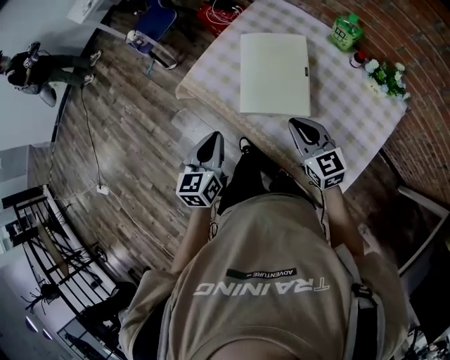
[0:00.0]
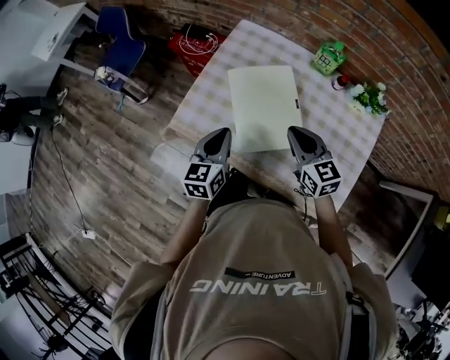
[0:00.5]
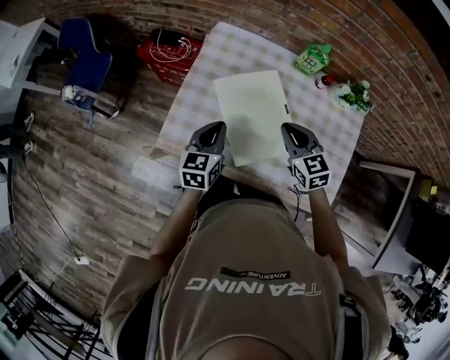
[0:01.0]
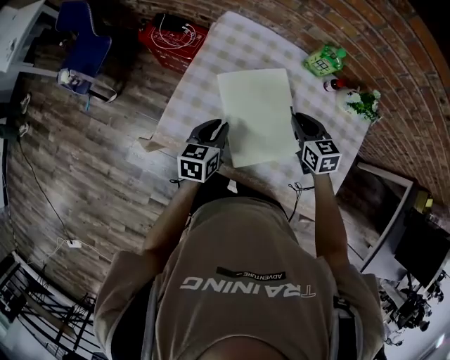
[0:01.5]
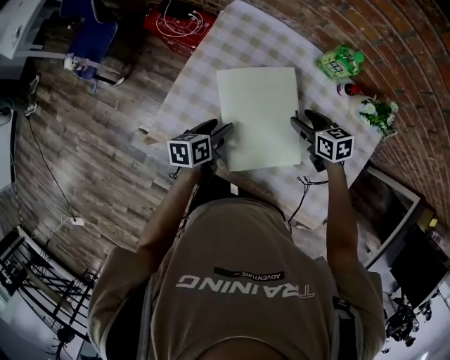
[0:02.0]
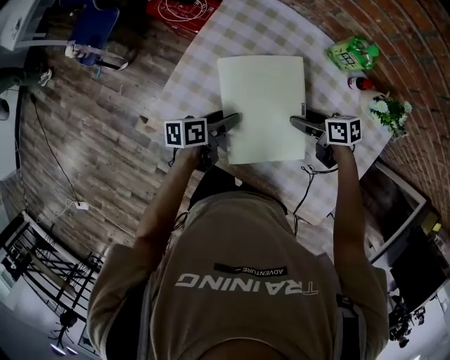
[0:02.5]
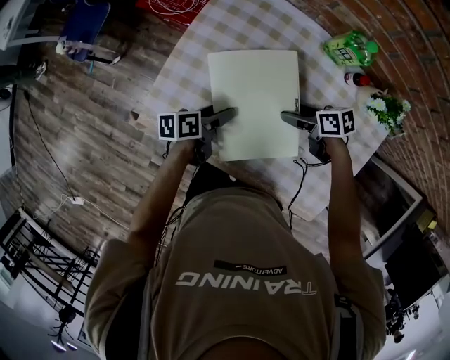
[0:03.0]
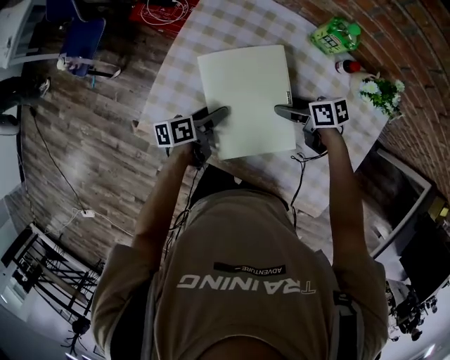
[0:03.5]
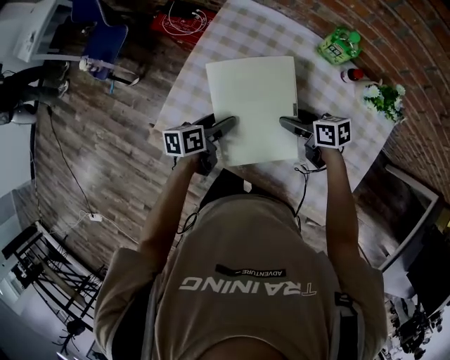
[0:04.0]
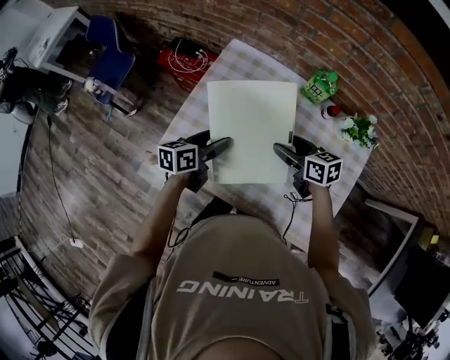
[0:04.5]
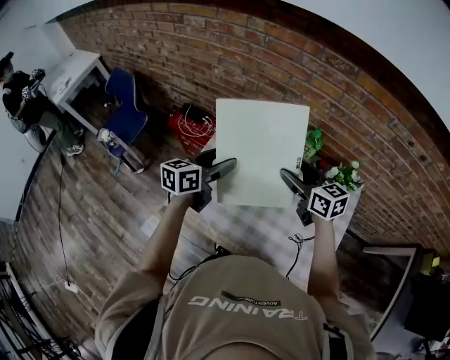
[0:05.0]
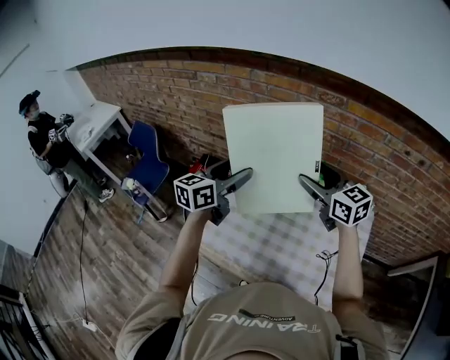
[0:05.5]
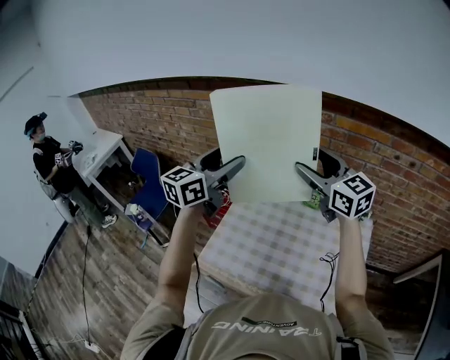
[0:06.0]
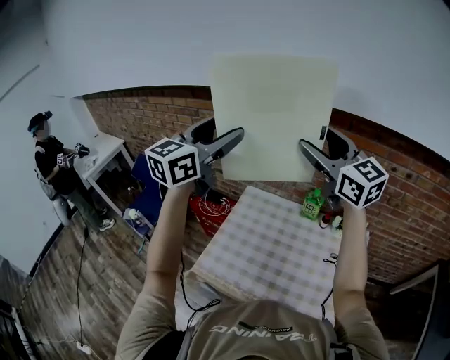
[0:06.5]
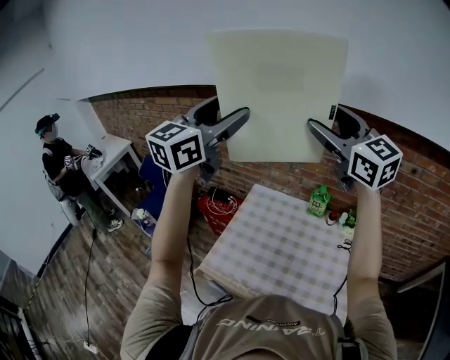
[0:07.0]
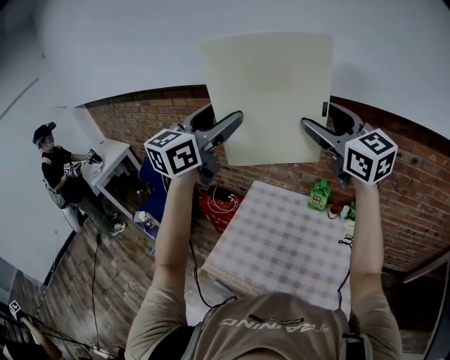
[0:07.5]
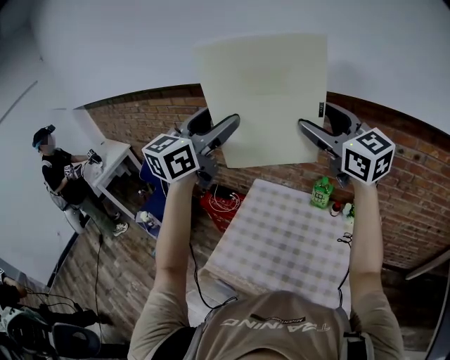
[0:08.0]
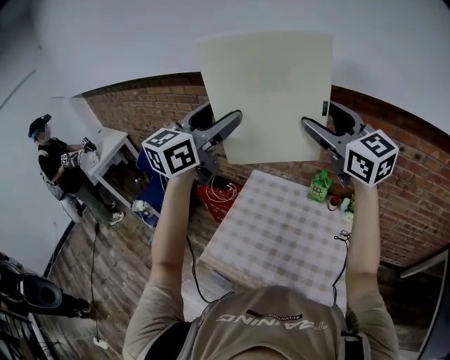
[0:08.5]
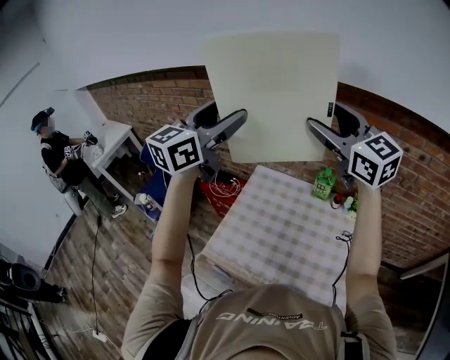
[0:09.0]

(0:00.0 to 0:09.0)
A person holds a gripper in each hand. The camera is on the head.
0:00.0 - 0:02.0: The right gripper ends up approximately 25 cm from where it was, turns by some 40 degrees, and opens its fingers, while the left gripper shifts by roughly 30 cm, changes its angle by some 50 degrees, and opens up.
0:02.0 - 0:04.5: The two grippers go approximately 10 cm upward.
0:04.5 - 0:07.0: Both grippers move upward, approximately 60 cm. The left gripper rolls clockwise, seen from behind, by some 50 degrees, while the right gripper points its fingers approximately 40 degrees further upward.
0:07.0 - 0:09.0: The two grippers go approximately 5 cm downward.

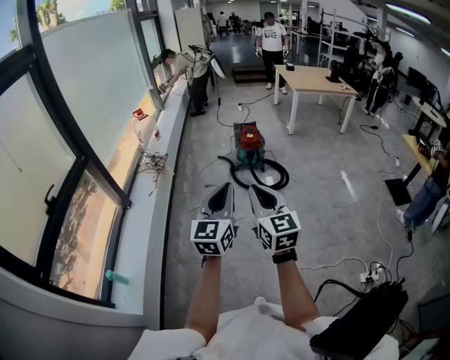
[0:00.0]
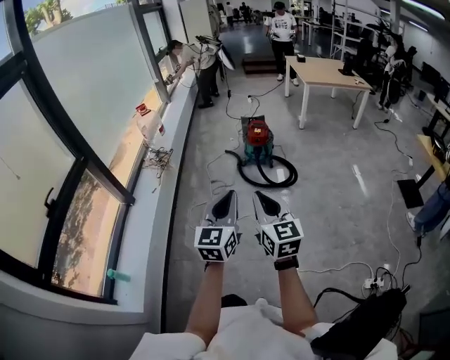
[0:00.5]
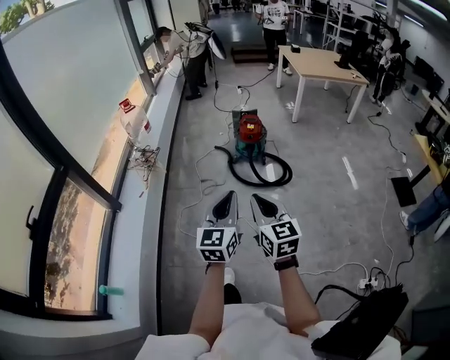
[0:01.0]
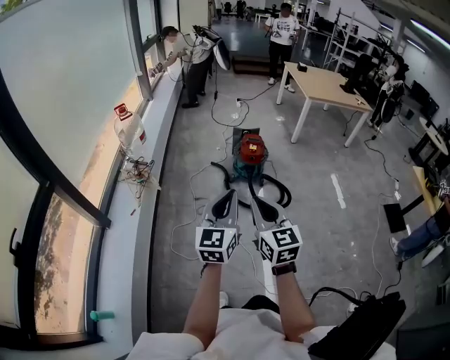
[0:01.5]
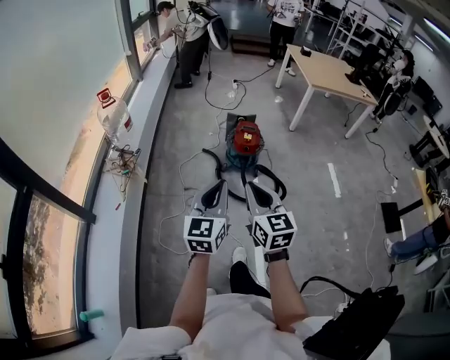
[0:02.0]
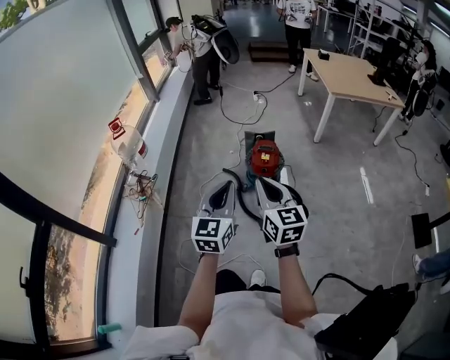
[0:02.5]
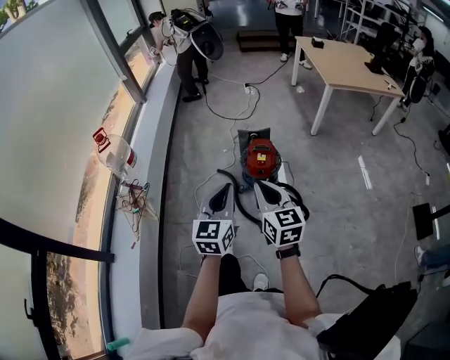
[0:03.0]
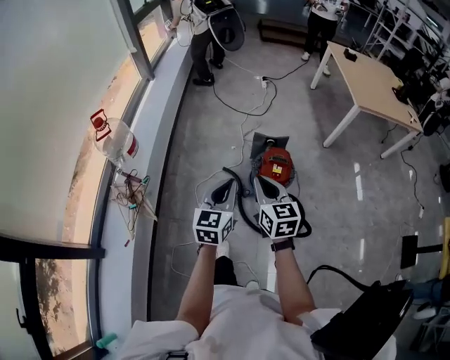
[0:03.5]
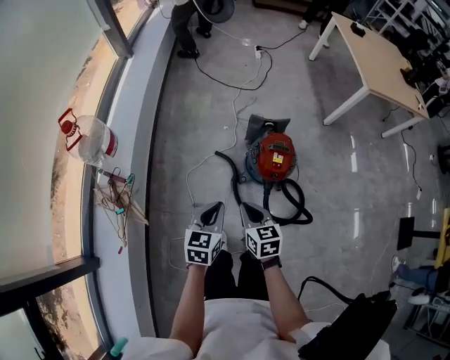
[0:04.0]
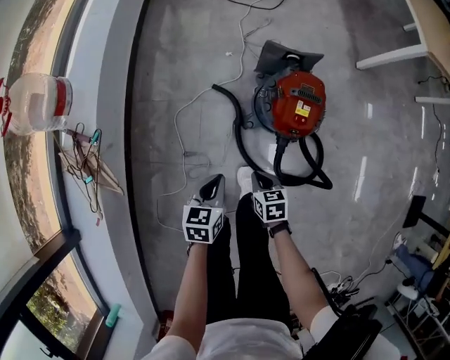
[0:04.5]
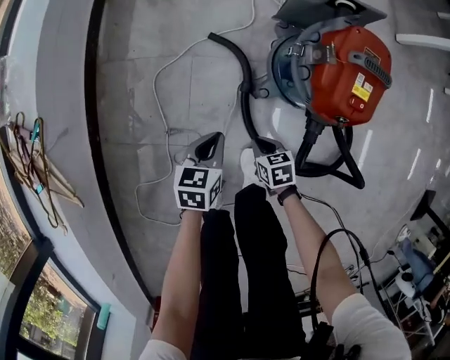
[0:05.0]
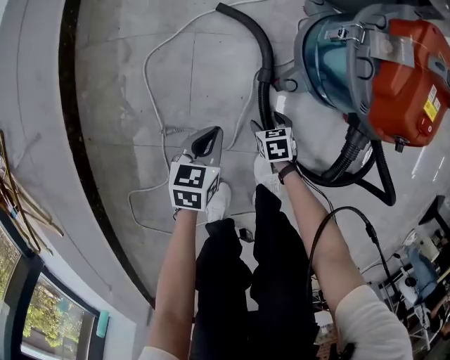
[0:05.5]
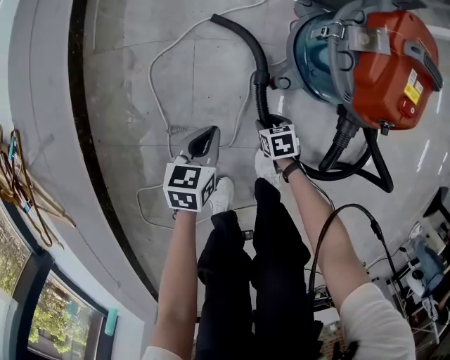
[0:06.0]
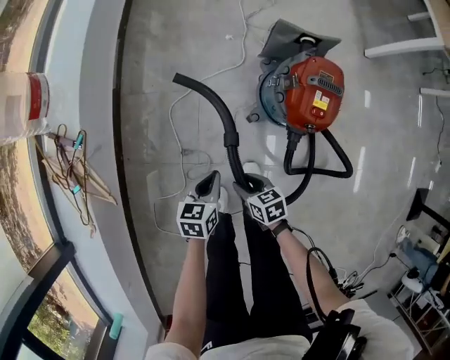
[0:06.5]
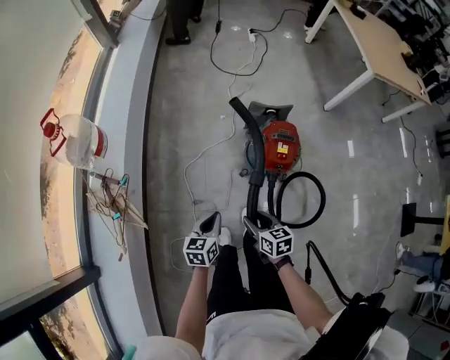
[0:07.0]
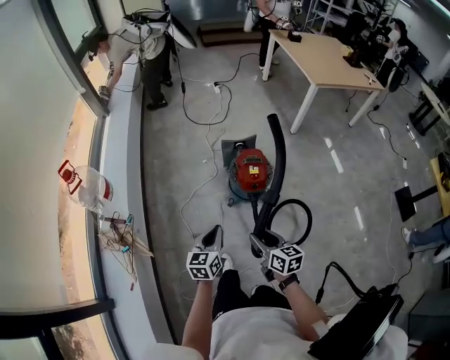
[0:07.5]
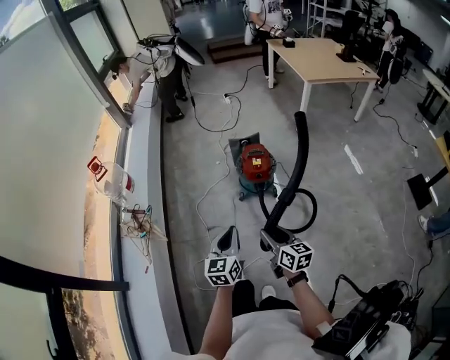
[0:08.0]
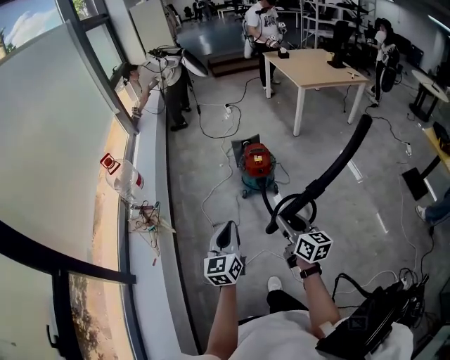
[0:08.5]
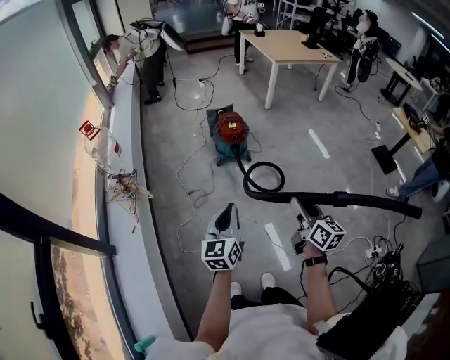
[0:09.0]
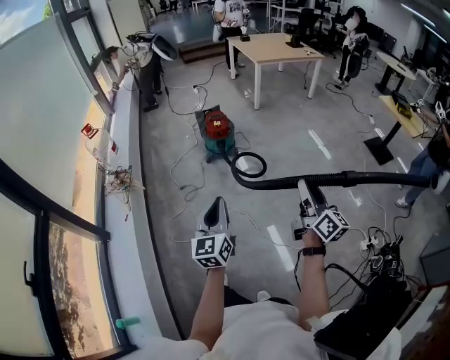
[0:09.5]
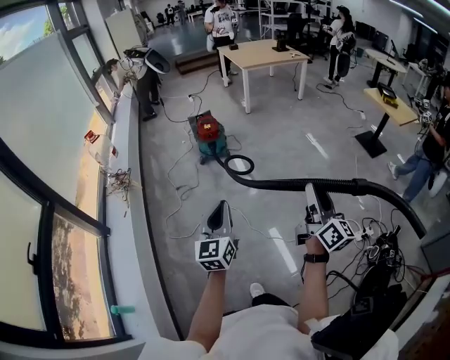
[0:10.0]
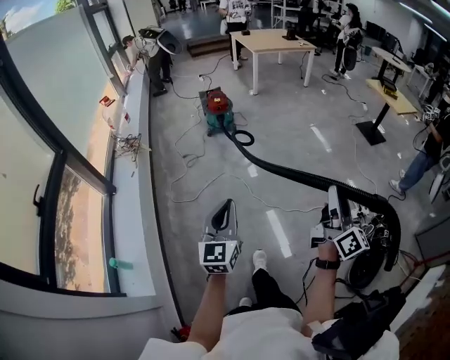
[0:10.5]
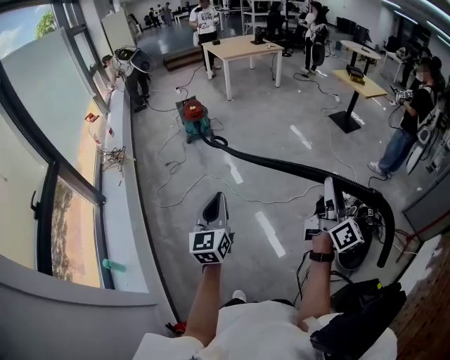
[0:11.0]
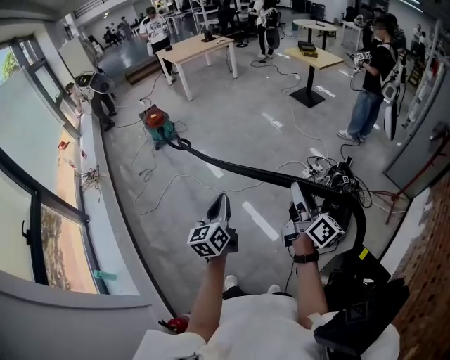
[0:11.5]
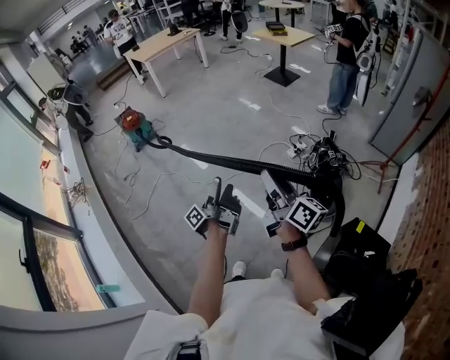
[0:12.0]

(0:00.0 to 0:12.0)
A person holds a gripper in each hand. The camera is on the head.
0:00.0 - 0:02.0: The pair of grippers is taken forward, approximately 50 cm.
0:02.0 - 0:04.0: Both grippers are carried forward, approximately 50 cm. The two grippers go approximately 25 cm downward. The left gripper rotates about 30 degrees, while the right gripper changes its angle by some 30 degrees.
0:04.0 - 0:06.0: Both grippers move downward, roughly 70 cm. The right gripper tips its fingers downward by approximately 40 degrees, and opens its fingers. Meanwhile the left gripper changes its angle by roughly 20 degrees.
0:06.0 - 0:08.0: Both grippers are carried backward, approximately 40 cm. The grippers both shift upward by some 80 cm. The left gripper tilts its fingers some 30 degrees upward. The right gripper points its fingers roughly 60 degrees further upward.
0:08.0 - 0:10.0: The pair of grippers is taken backward and to the right, roughly 70 cm. The right gripper angles its fingers upward, by some 30 degrees.
0:10.0 - 0:12.0: Both grippers are carried backward and to the right, about 50 cm. The left gripper rotates around the line of its fingers by some 90 degrees, counterclockwise from behind, and opens up.

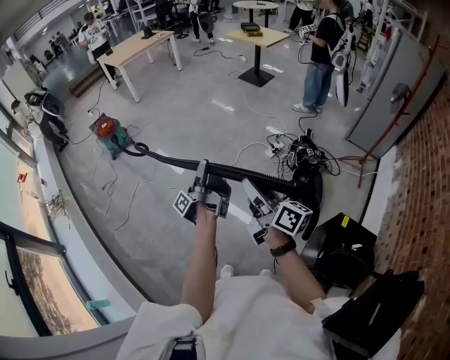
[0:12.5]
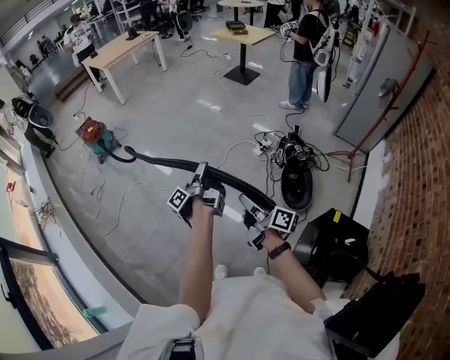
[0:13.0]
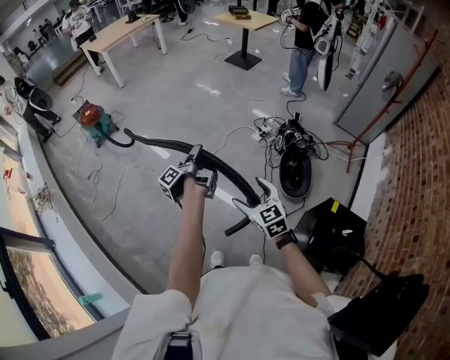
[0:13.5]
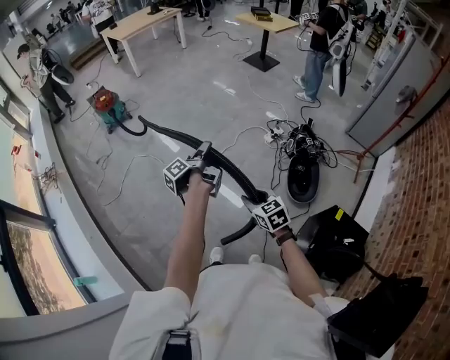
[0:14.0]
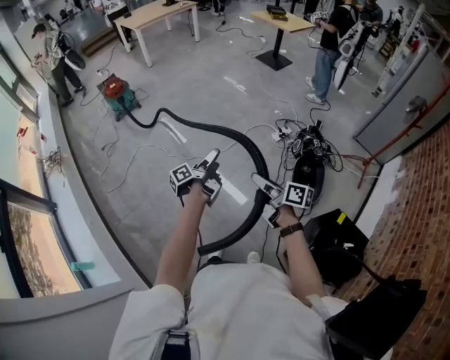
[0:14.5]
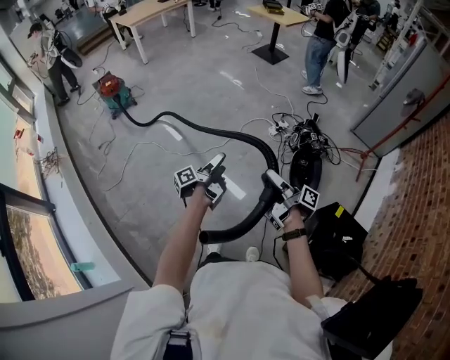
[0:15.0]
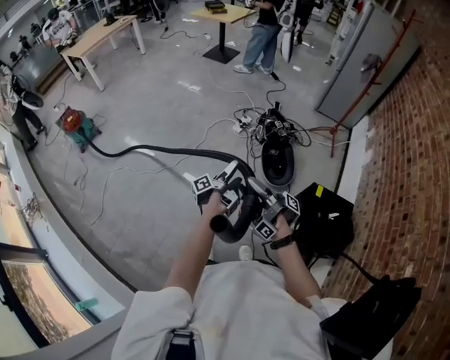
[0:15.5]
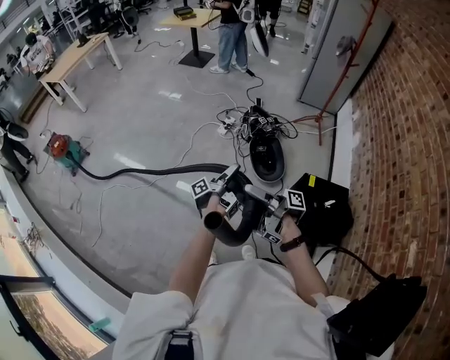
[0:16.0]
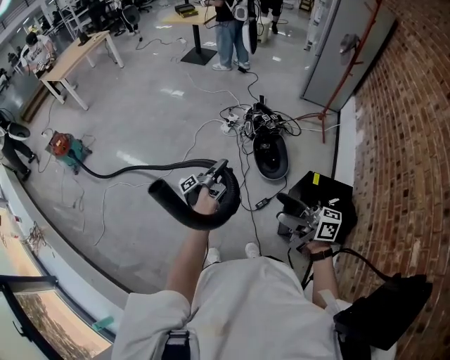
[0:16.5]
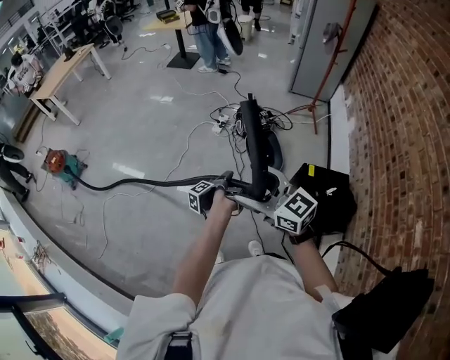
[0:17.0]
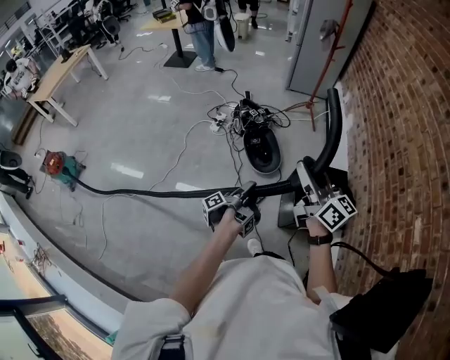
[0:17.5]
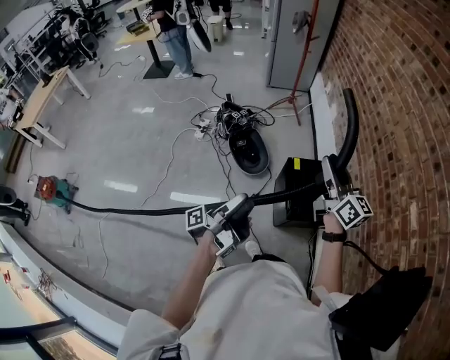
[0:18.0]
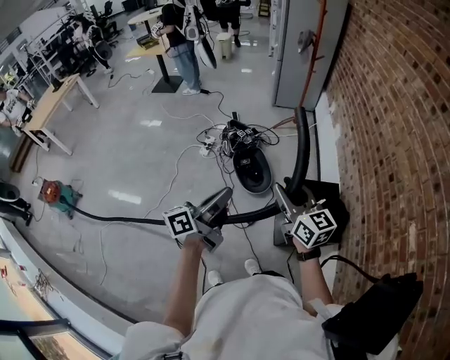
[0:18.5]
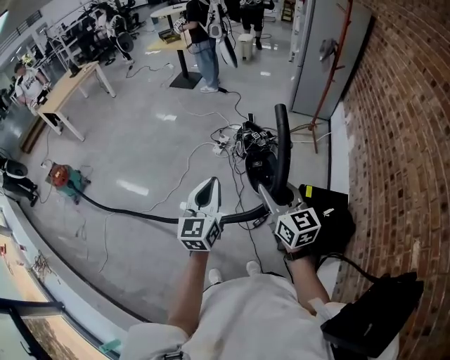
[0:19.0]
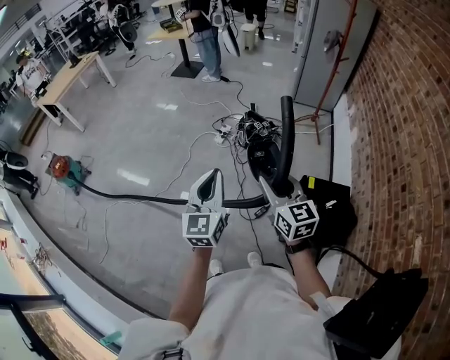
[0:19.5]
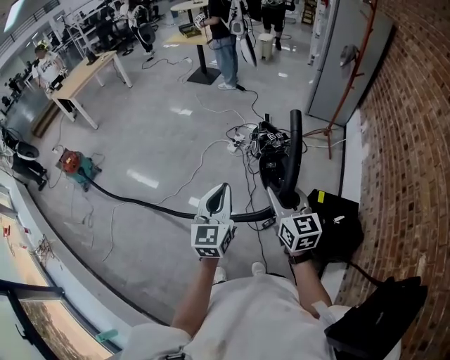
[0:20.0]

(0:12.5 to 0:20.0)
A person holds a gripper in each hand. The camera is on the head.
0:12.5 - 0:14.5: The grippers both shift downward by approximately 15 cm. The left gripper turns by approximately 30 degrees, while the right gripper rotates about 30 degrees, and opens, then closes again.
0:14.5 - 0:16.5: The left gripper moves to the right, roughly 20 cm, changes its angle by approximately 40 degrees, and closes its fingers. The right gripper travels to the right, backward and upward by about 25 cm, turns by approximately 20 degrees, and opens up.
0:16.5 - 0:18.0: The right gripper changes place by approximately 25 cm, swivels some 60 degrees, and closes; the left gripper ends up approximately 20 cm from where it was, and swivels some 40 degrees.
0:18.0 - 0:20.0: The left gripper ends up some 15 cm from where it was, twists about 100 degrees clockwise, seen from behind, and closes. The right gripper changes place by roughly 25 cm, and rotates about 30 degrees.
